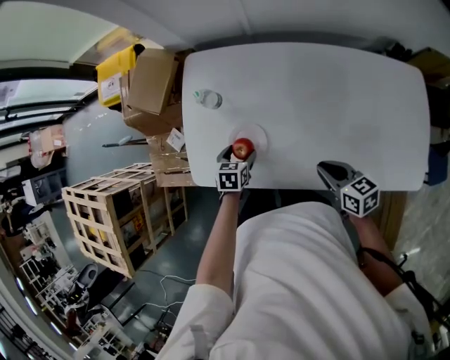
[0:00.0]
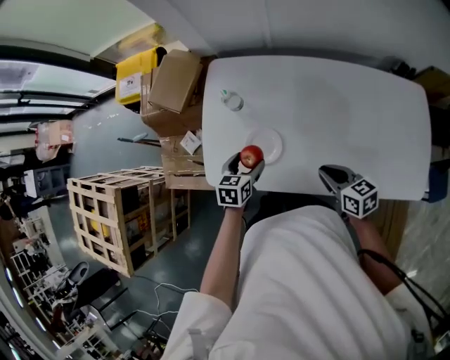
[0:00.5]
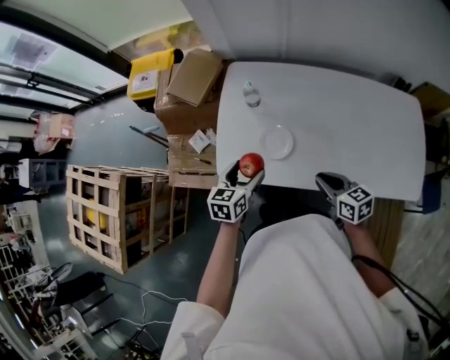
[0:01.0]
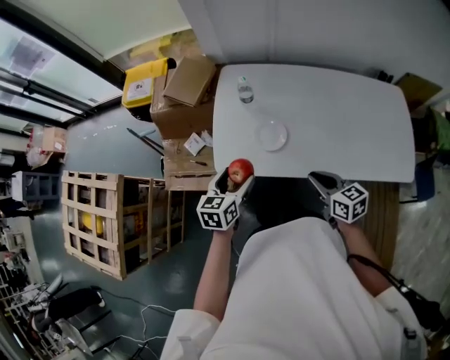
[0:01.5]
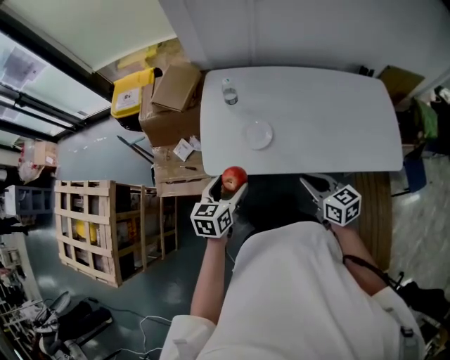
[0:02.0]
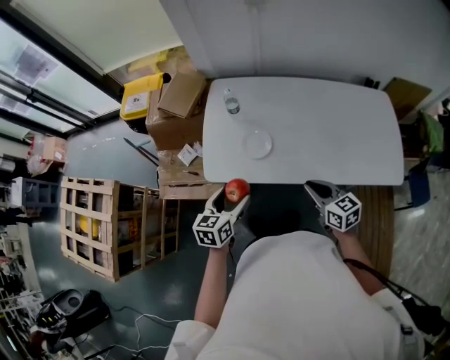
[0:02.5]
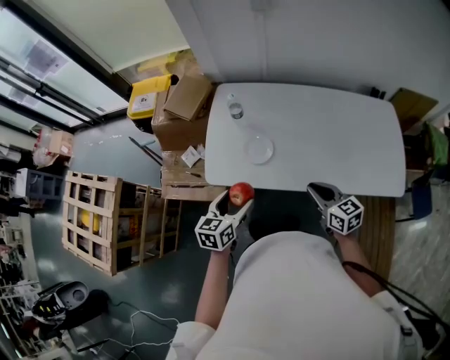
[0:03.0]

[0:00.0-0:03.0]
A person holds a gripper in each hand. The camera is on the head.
0:00.0 to 0:01.5: The left gripper is displaced upward, to the left and backward by approximately 25 cm, and swivels approximately 30 degrees, while the right gripper moves to the left, backward and upward, some 20 cm.
0:01.5 to 0:03.0: The right gripper goes approximately 5 cm to the right, while the left gripper travels to the right and backward by approximately 10 cm.

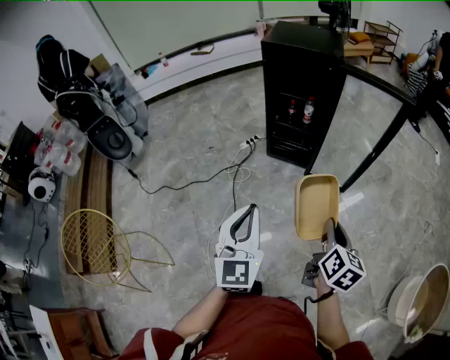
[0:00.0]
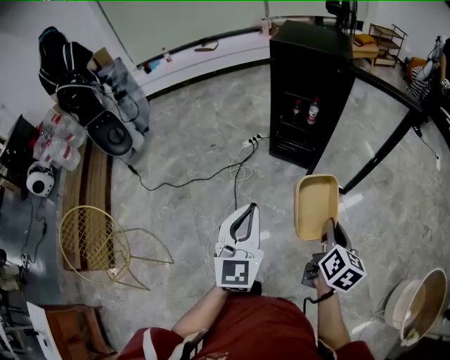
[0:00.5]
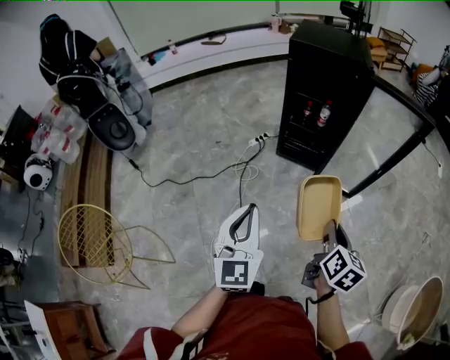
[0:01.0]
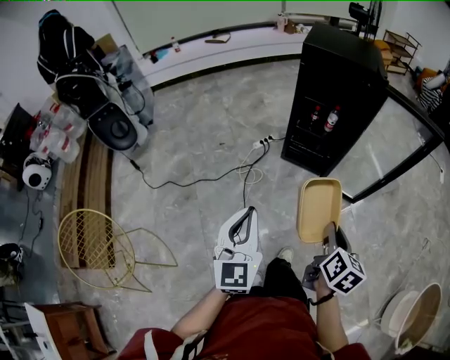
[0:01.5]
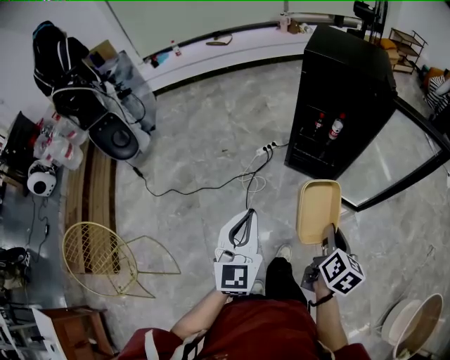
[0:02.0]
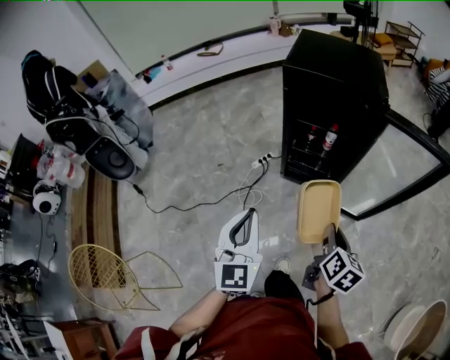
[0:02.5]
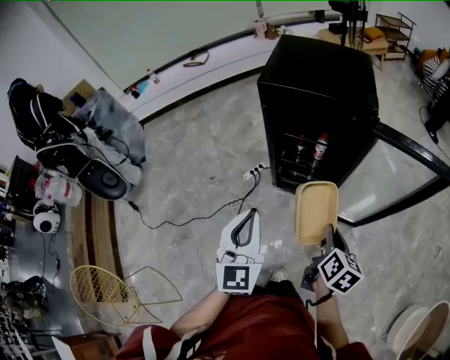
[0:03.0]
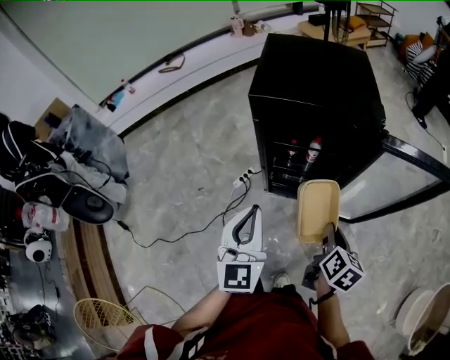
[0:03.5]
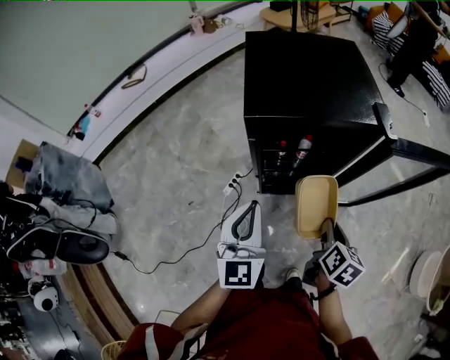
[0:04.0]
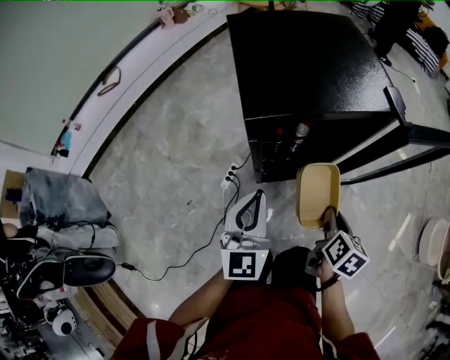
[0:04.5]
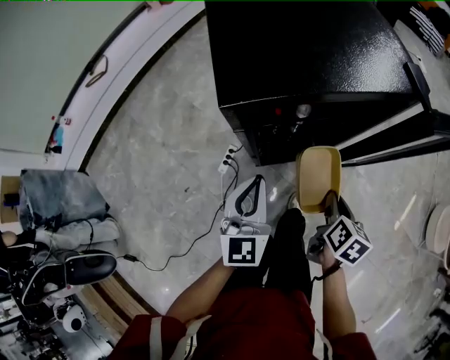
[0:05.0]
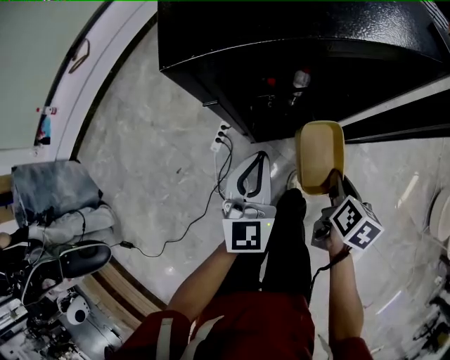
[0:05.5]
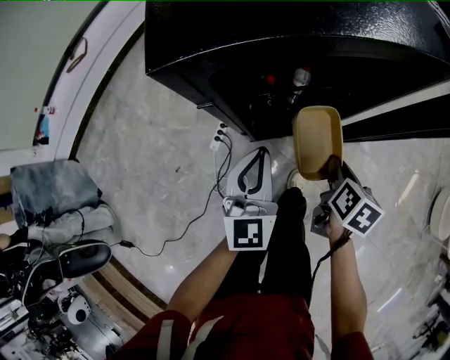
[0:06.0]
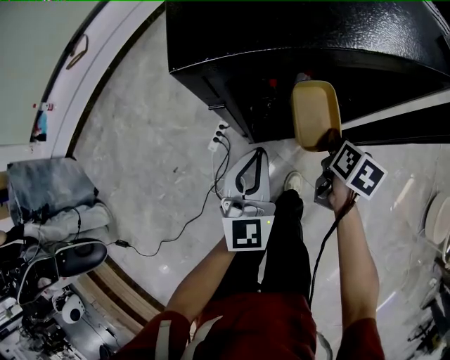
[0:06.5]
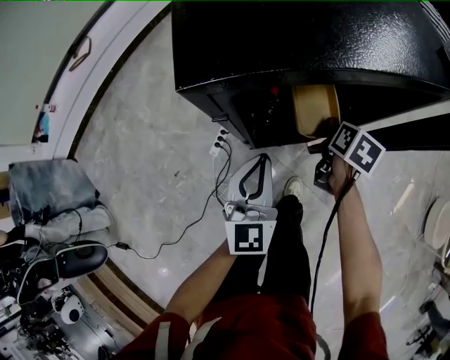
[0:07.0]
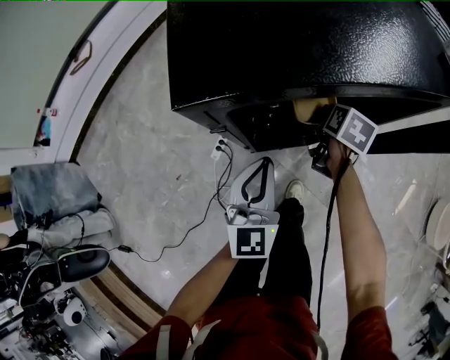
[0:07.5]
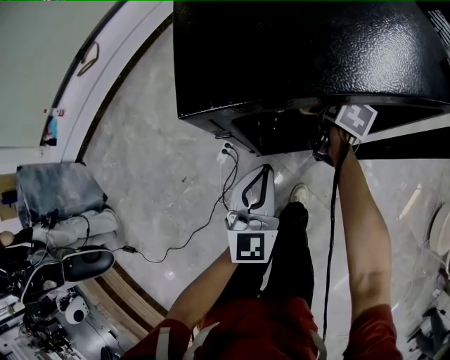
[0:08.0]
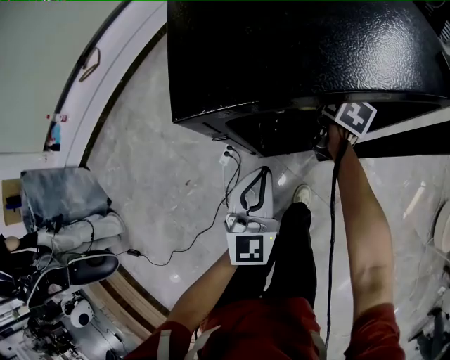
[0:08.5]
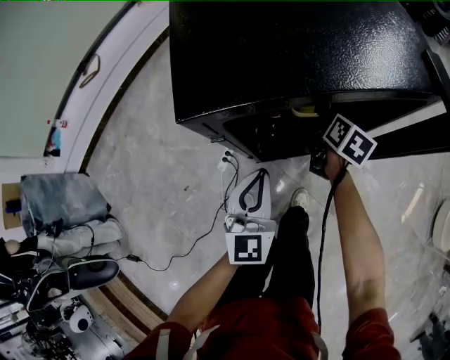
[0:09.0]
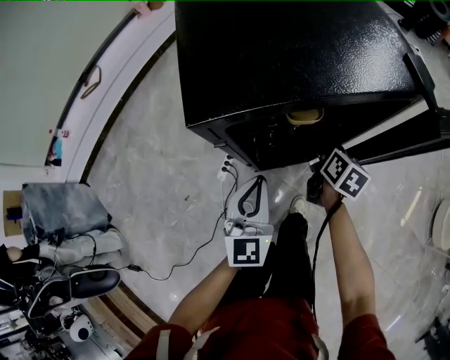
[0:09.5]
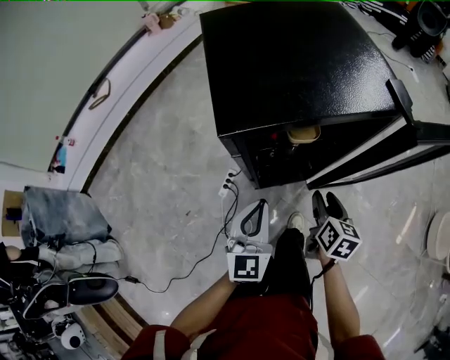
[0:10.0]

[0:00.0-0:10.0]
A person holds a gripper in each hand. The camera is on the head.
0:00.0 to 0:02.0: The grippers both shift forward and to the left by approximately 20 cm.
0:02.0 to 0:04.0: Both grippers travel together forward, about 35 cm. The right gripper changes its angle by approximately 20 degrees. The left gripper rotates some 20 degrees.
0:04.0 to 0:06.0: The grippers both shift downward and forward by about 20 cm.
0:06.0 to 0:08.0: The right gripper is displaced forward by some 20 cm.
0:08.0 to 0:10.0: The right gripper is displaced backward by about 20 cm, and opens up; the left gripper shifts roughly 5 cm upward.

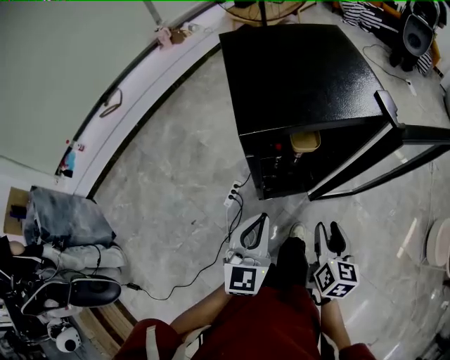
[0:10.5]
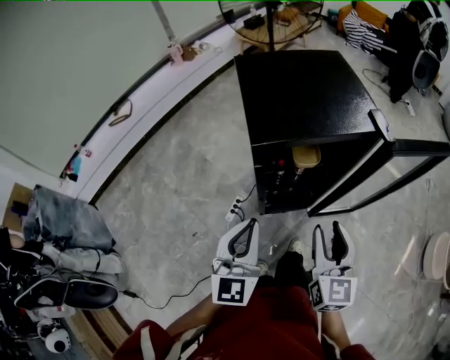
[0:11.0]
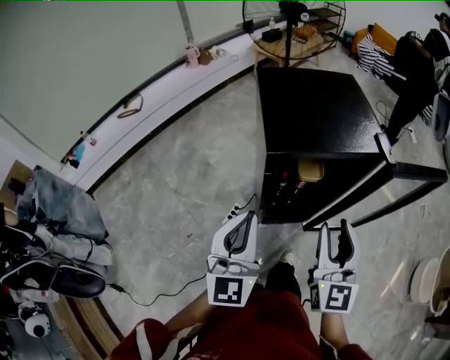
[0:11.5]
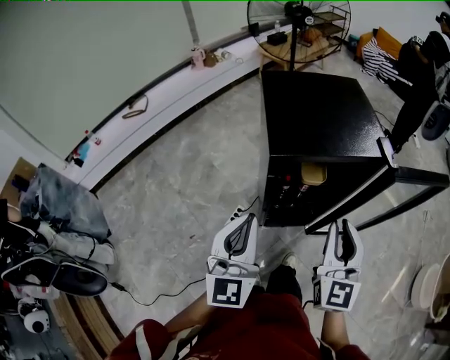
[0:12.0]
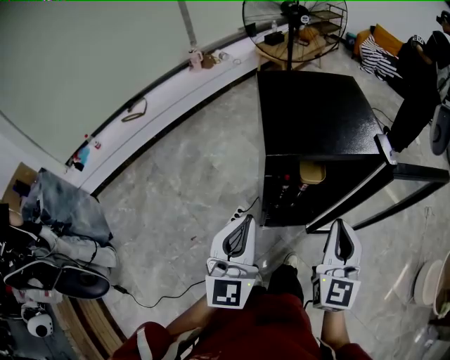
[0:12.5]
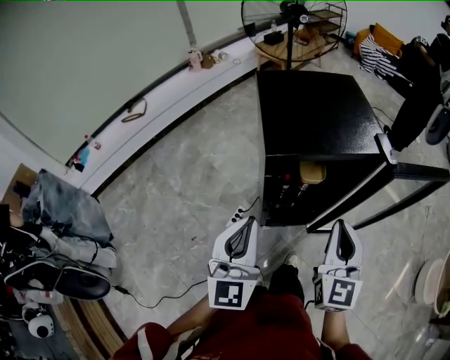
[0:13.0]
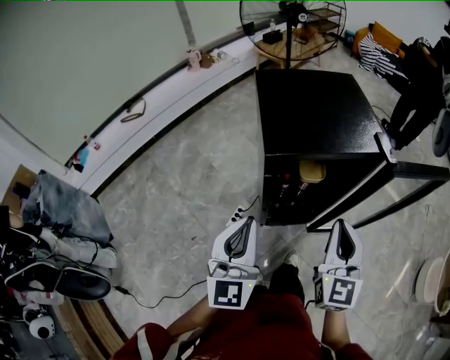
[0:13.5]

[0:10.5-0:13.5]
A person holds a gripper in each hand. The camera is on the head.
0:10.5 to 0:12.0: The left gripper goes roughly 15 cm upward and to the left; the right gripper moves upward, some 20 cm, rotates roughly 40 degrees, and closes up.
0:12.0 to 0:13.5: The grippers move only a little.

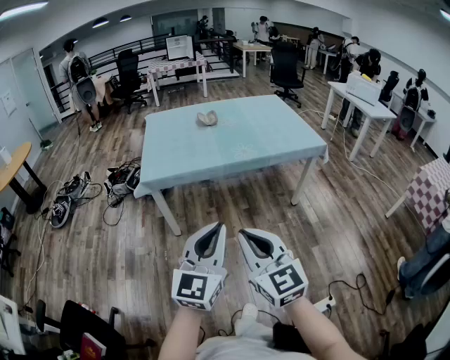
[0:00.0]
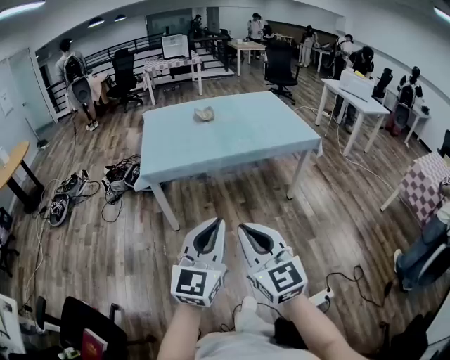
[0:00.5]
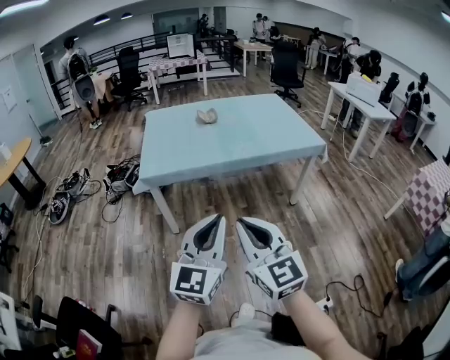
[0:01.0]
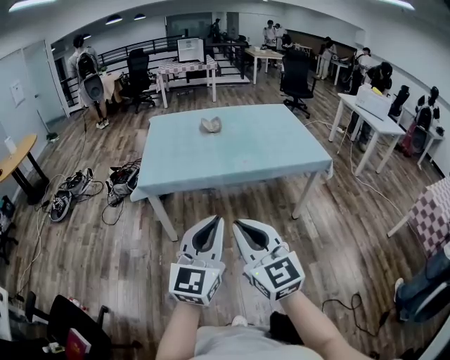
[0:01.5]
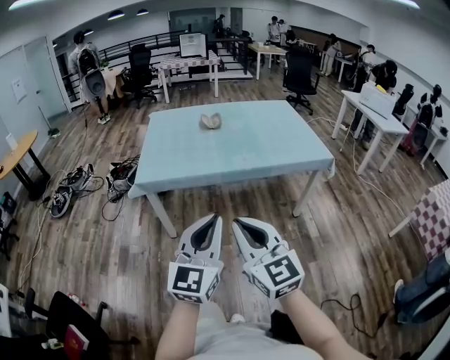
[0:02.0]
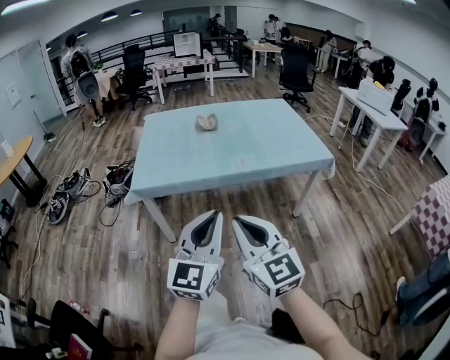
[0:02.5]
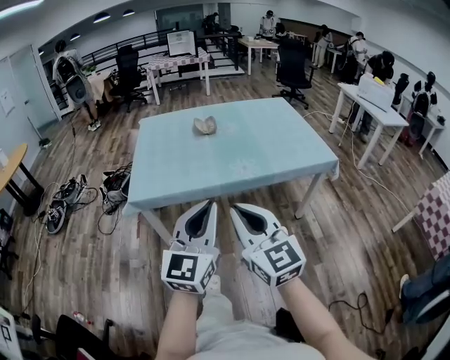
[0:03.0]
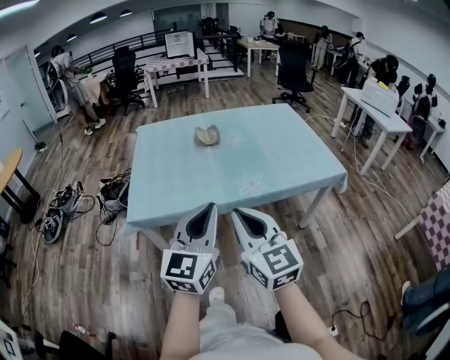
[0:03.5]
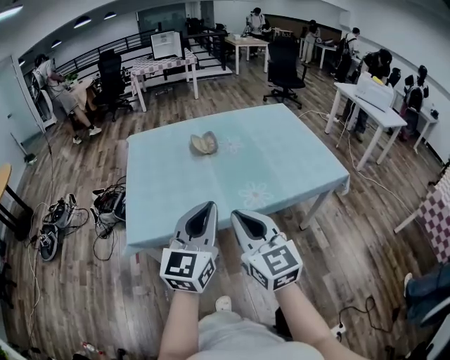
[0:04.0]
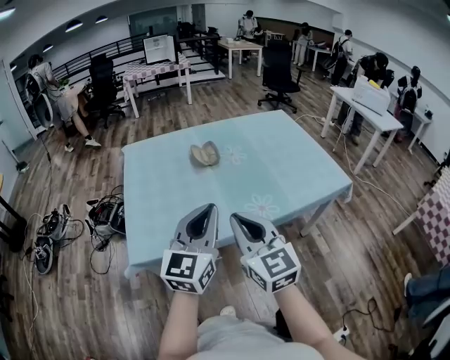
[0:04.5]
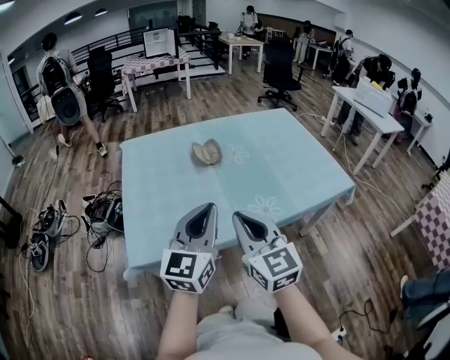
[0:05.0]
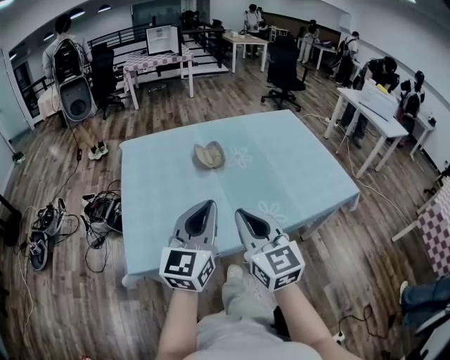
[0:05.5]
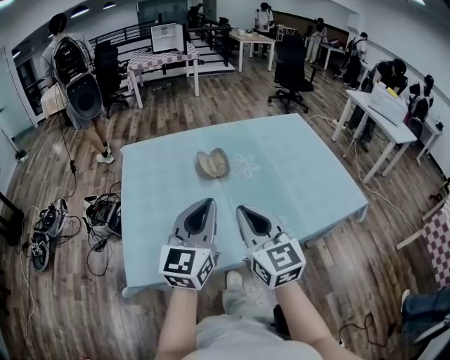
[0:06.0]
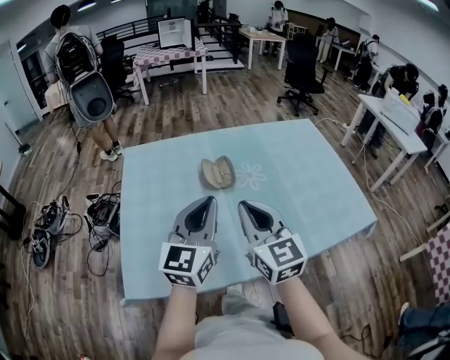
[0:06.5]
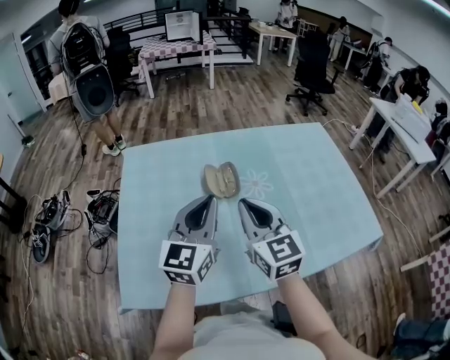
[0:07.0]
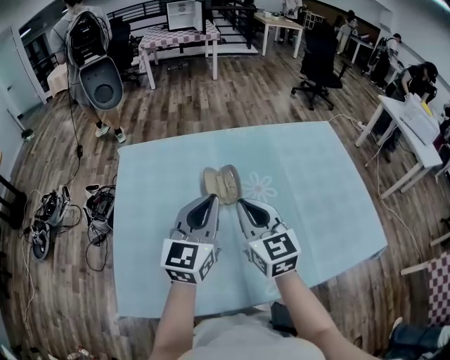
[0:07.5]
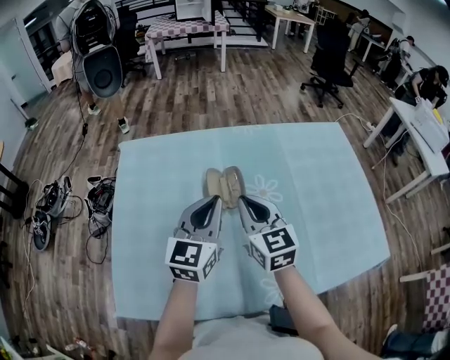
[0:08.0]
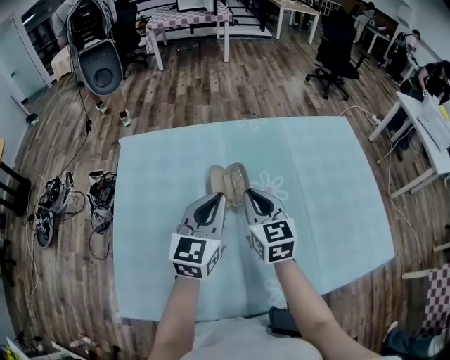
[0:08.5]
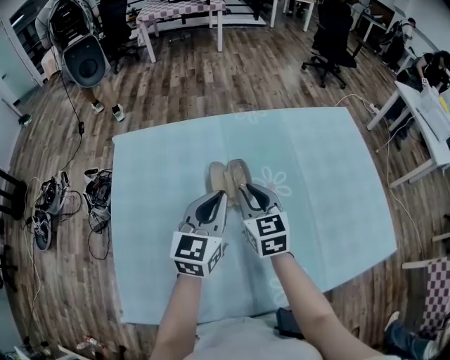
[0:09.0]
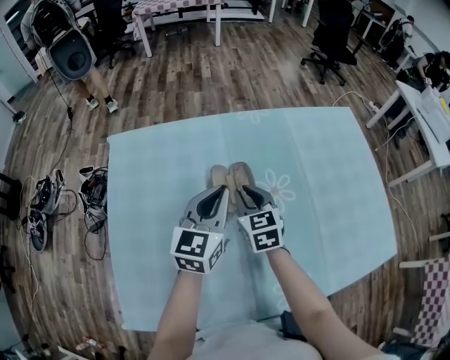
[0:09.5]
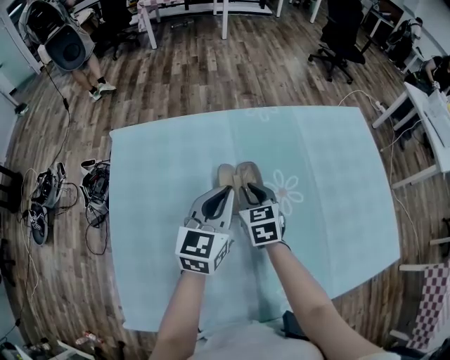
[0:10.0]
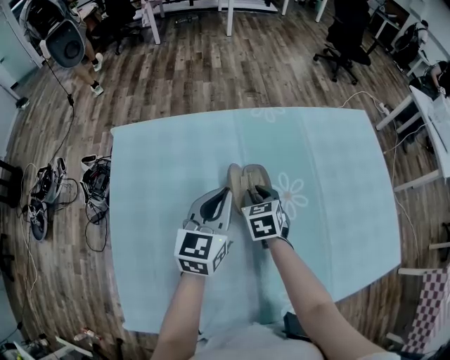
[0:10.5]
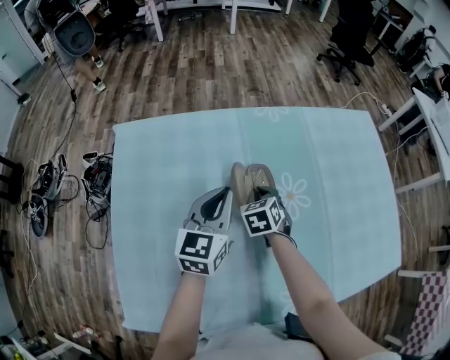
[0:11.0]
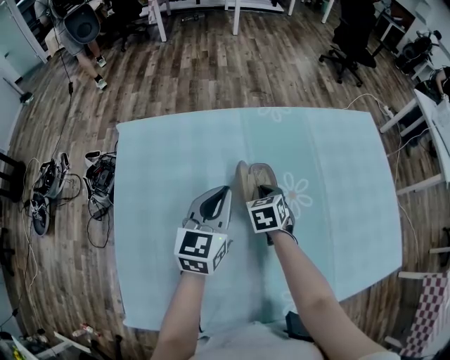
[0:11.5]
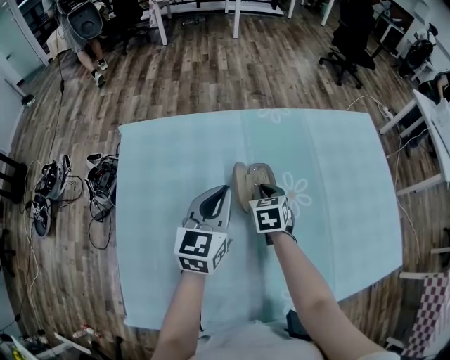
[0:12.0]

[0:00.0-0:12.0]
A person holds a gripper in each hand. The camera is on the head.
0:00.0 to 0:02.0: The grippers both shift forward by about 10 cm.
0:02.0 to 0:04.0: The two grippers go approximately 30 cm forward.
0:04.0 to 0:06.0: Both grippers travel together forward, about 20 cm.
0:06.0 to 0:08.0: Both grippers travel together forward, approximately 25 cm.
0:08.0 to 0:10.0: The left gripper travels forward and downward by about 10 cm. Meanwhile the right gripper goes about 20 cm downward and forward, and swivels approximately 20 degrees.
